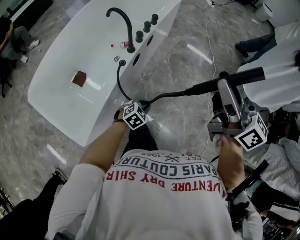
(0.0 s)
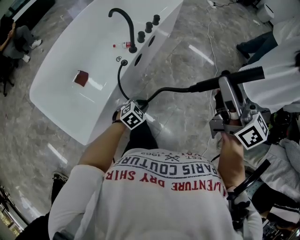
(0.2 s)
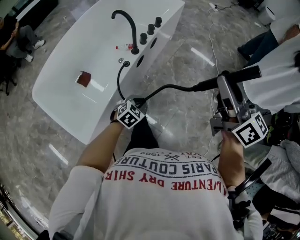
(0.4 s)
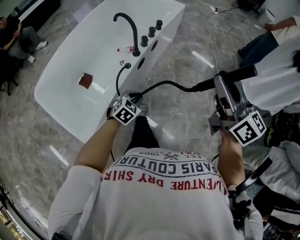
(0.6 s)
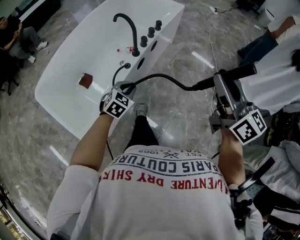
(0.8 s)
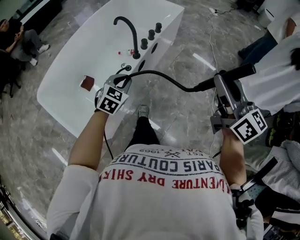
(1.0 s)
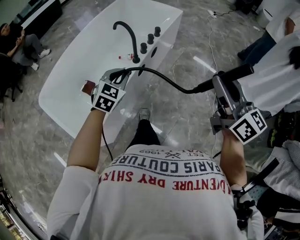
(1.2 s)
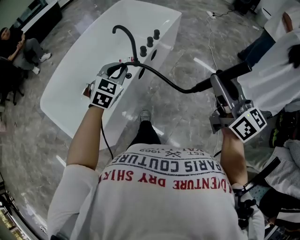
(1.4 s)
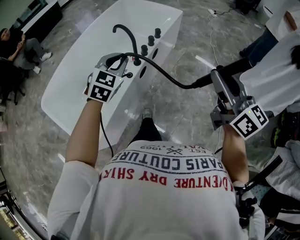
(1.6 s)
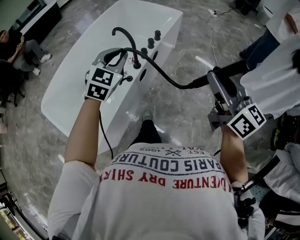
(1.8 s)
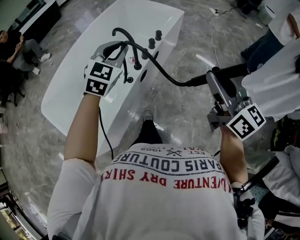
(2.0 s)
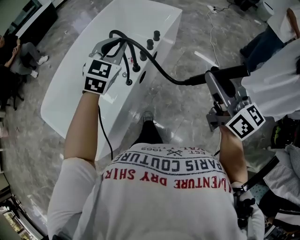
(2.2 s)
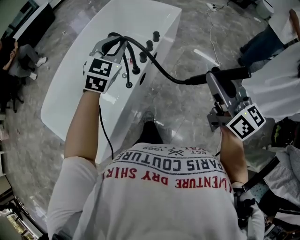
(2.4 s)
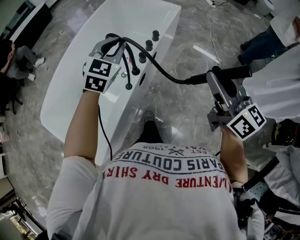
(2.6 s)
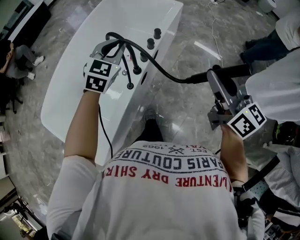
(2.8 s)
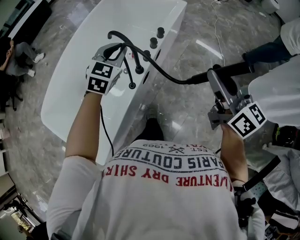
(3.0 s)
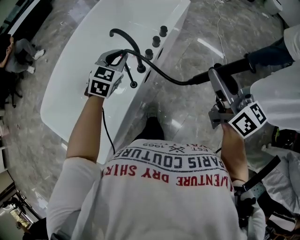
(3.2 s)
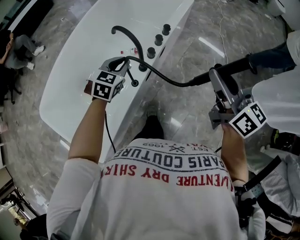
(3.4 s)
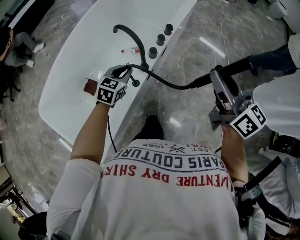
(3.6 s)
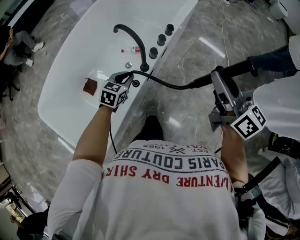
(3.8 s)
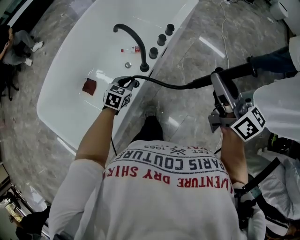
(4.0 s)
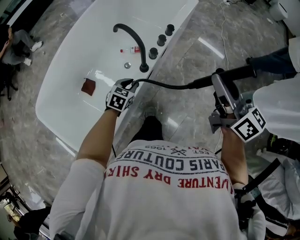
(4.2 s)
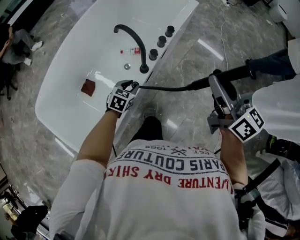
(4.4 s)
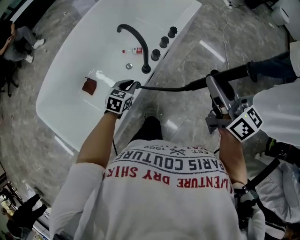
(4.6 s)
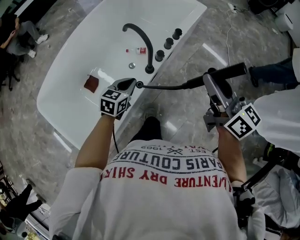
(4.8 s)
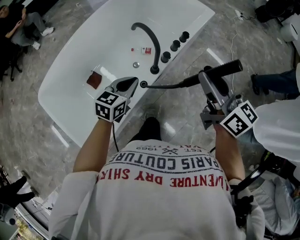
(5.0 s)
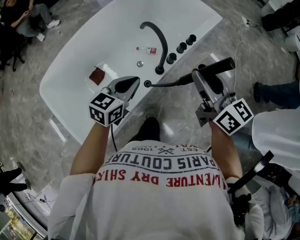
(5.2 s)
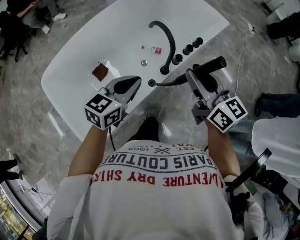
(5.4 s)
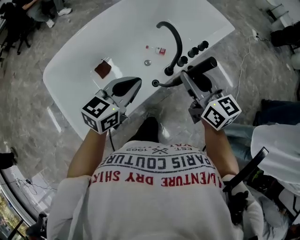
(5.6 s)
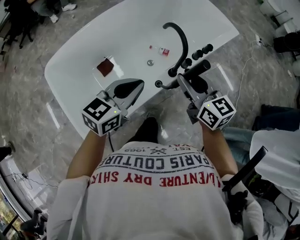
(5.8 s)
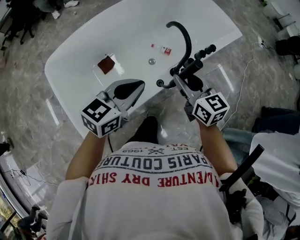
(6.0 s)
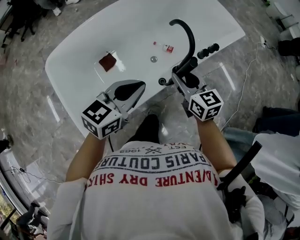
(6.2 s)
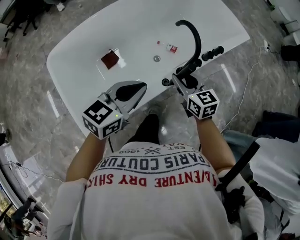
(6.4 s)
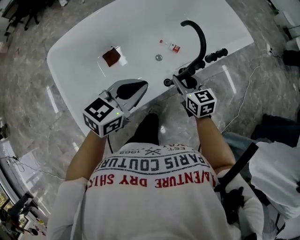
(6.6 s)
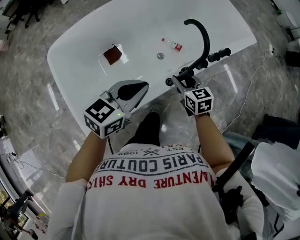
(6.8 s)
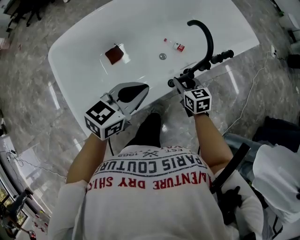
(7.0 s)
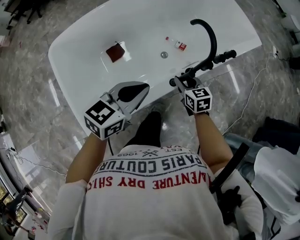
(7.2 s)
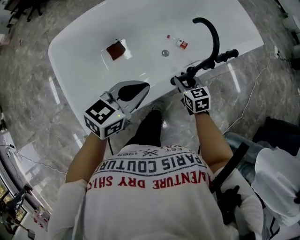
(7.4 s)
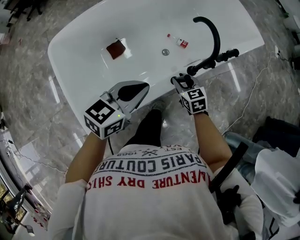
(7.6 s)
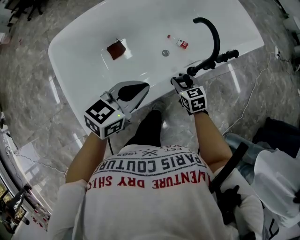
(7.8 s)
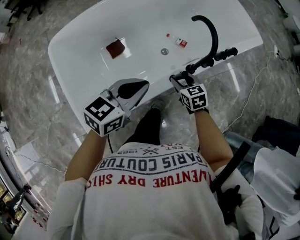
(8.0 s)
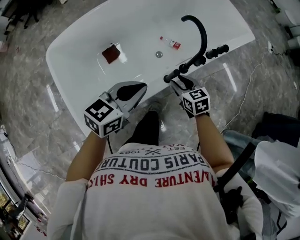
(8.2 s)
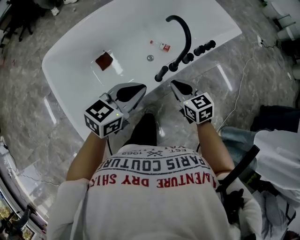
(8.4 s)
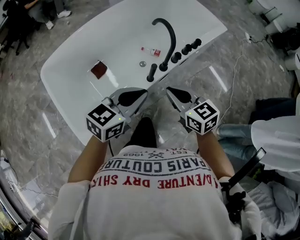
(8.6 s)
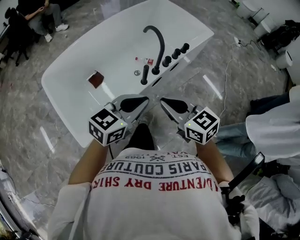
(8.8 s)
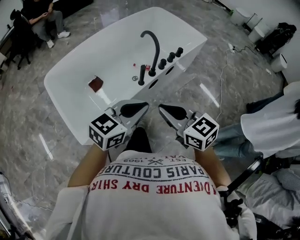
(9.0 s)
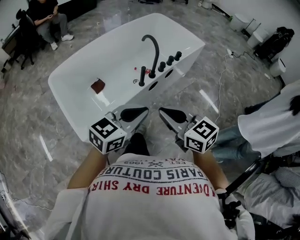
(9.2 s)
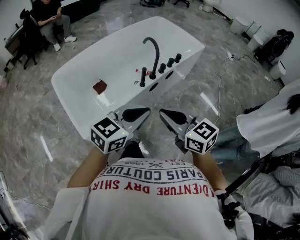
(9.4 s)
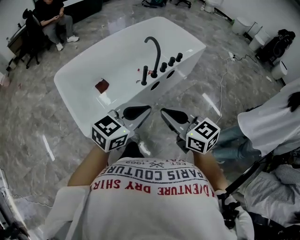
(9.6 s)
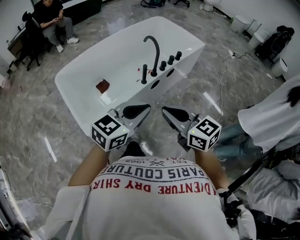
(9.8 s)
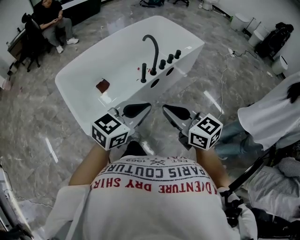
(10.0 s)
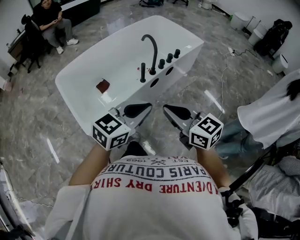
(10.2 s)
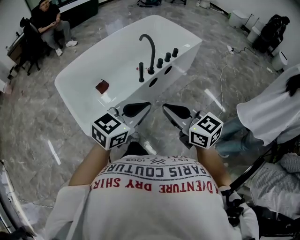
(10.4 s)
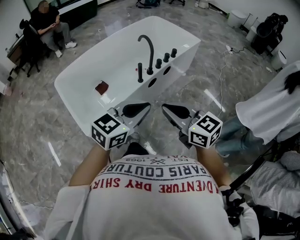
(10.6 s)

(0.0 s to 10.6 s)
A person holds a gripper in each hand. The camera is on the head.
0.0 s - 1.6 s: The left gripper goes some 35 cm upward, forward and to the left, and swivels roughly 40 degrees.
1.6 s - 3.0 s: Both grippers move forward, approximately 15 cm.
3.0 s - 4.6 s: The right gripper goes some 5 cm to the left, while the left gripper moves downward and backward, about 25 cm, and swivels about 30 degrees.
4.6 s - 6.0 s: The left gripper shifts some 25 cm upward and to the left, and turns by roughly 30 degrees, while the right gripper shifts about 25 cm to the left and downward, and turns by some 30 degrees.
6.0 s - 7.6 s: The left gripper travels downward by roughly 5 cm; the right gripper shifts about 25 cm downward, and turns by roughly 30 degrees.
7.6 s - 9.0 s: The right gripper heads upward and backward, covering roughly 40 cm, turns by about 30 degrees, and closes up. Meanwhile the left gripper moves backward, to the right and upward, approximately 25 cm, and rotates some 20 degrees.
9.0 s - 10.6 s: The two grippers go some 10 cm backward and upward.

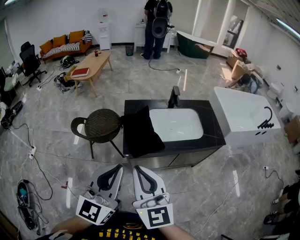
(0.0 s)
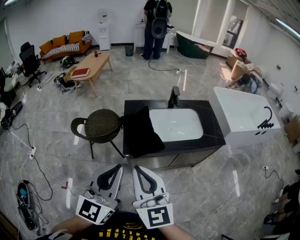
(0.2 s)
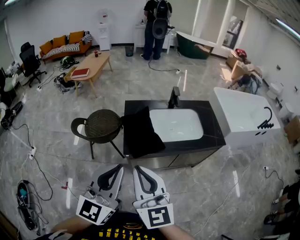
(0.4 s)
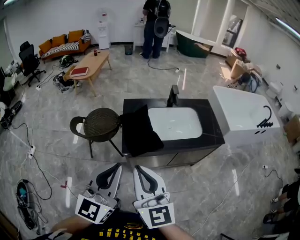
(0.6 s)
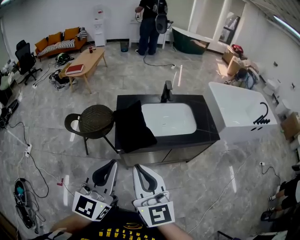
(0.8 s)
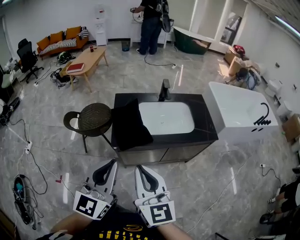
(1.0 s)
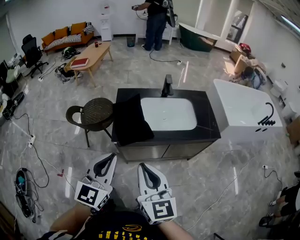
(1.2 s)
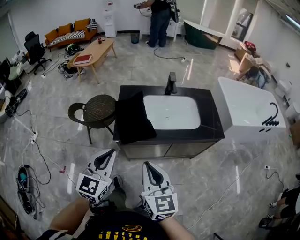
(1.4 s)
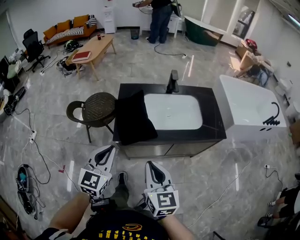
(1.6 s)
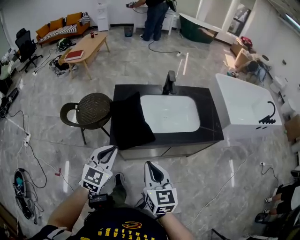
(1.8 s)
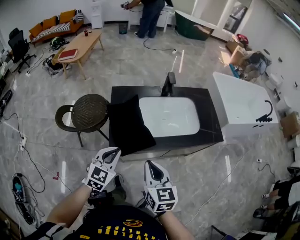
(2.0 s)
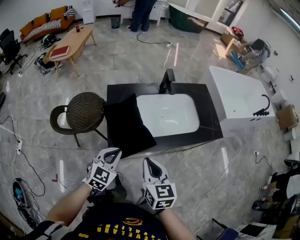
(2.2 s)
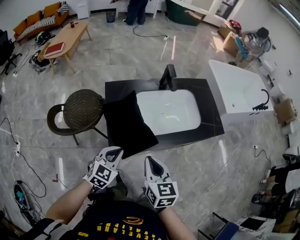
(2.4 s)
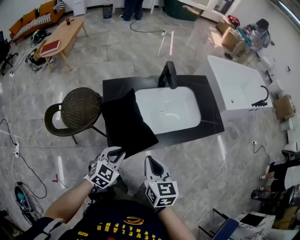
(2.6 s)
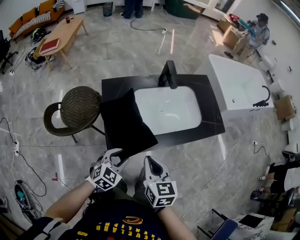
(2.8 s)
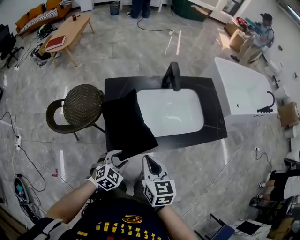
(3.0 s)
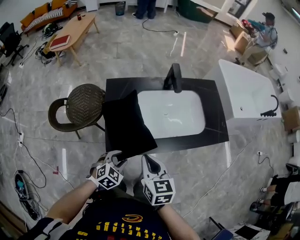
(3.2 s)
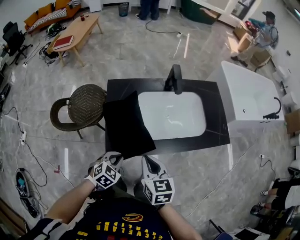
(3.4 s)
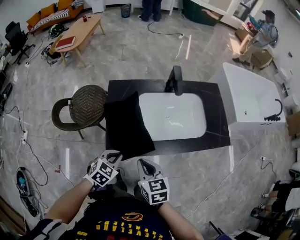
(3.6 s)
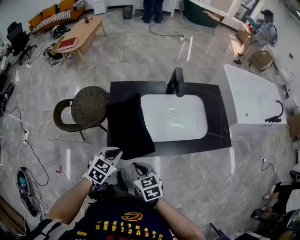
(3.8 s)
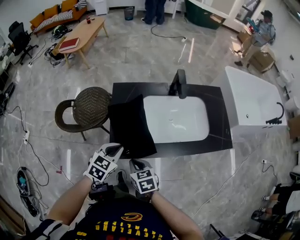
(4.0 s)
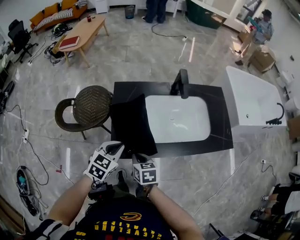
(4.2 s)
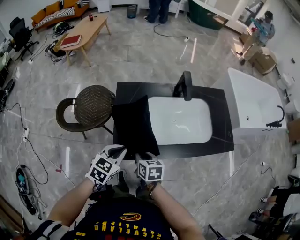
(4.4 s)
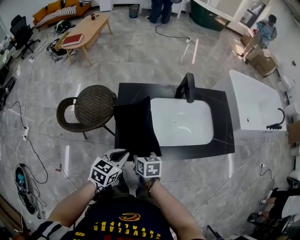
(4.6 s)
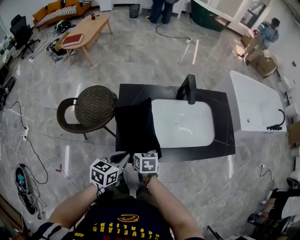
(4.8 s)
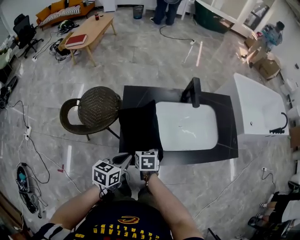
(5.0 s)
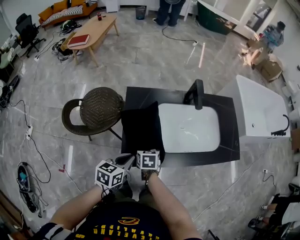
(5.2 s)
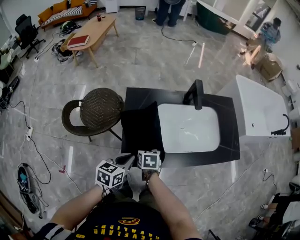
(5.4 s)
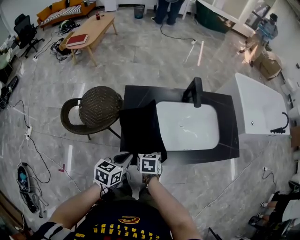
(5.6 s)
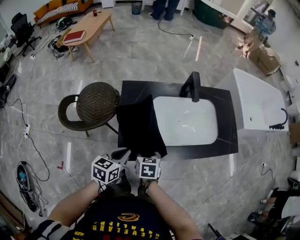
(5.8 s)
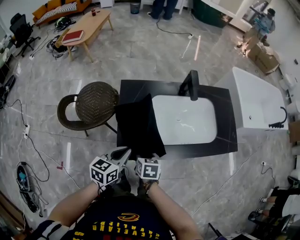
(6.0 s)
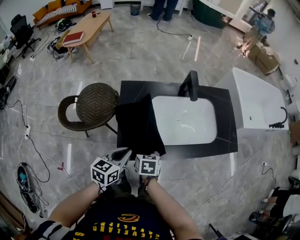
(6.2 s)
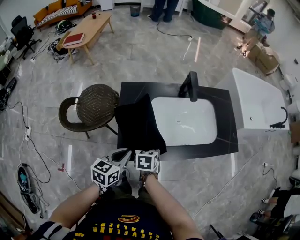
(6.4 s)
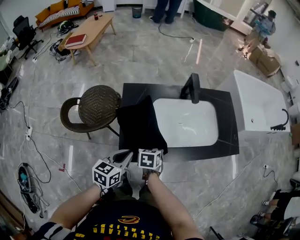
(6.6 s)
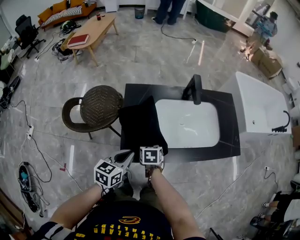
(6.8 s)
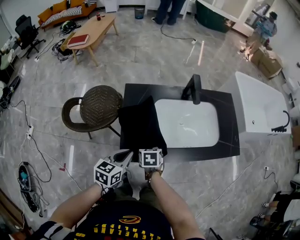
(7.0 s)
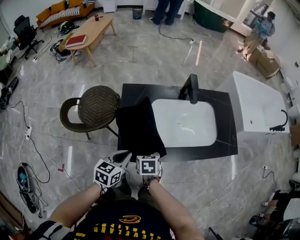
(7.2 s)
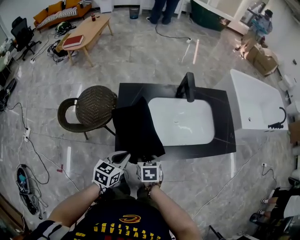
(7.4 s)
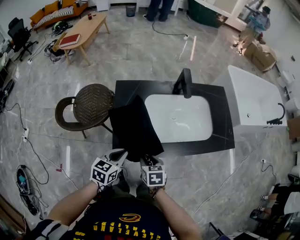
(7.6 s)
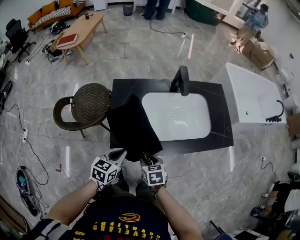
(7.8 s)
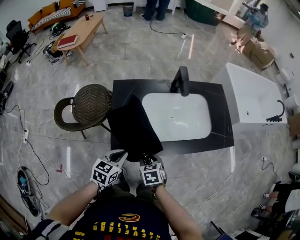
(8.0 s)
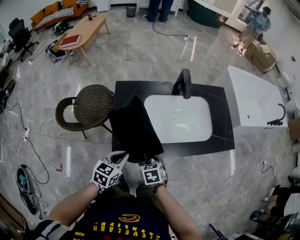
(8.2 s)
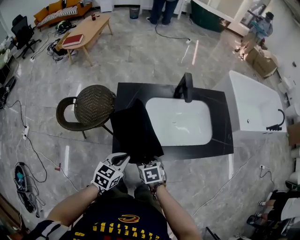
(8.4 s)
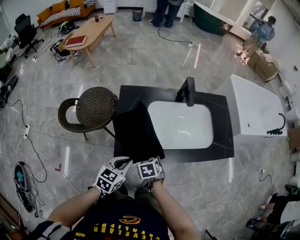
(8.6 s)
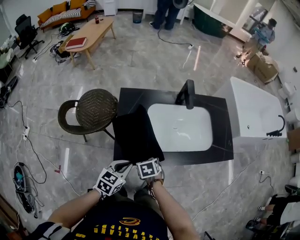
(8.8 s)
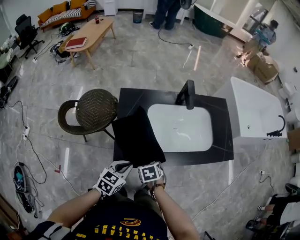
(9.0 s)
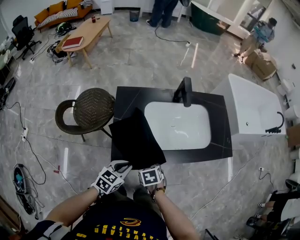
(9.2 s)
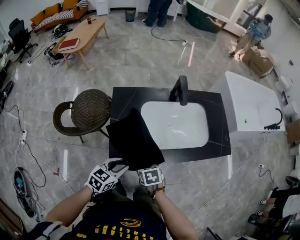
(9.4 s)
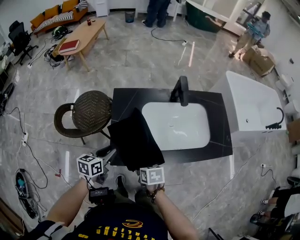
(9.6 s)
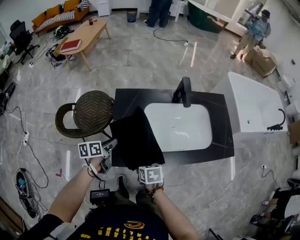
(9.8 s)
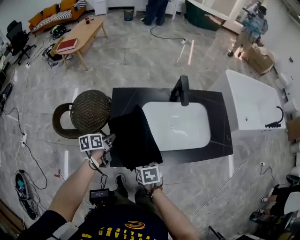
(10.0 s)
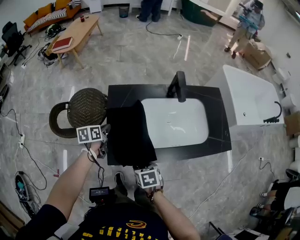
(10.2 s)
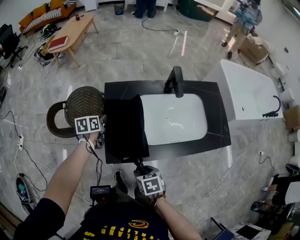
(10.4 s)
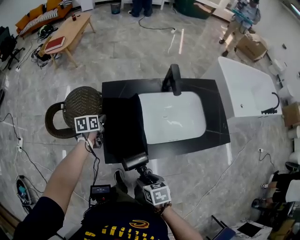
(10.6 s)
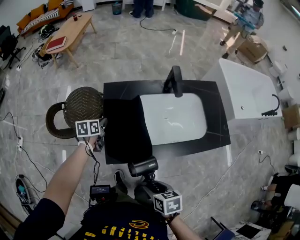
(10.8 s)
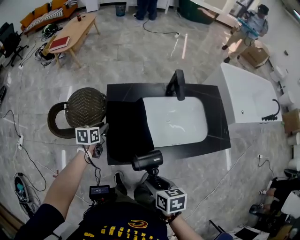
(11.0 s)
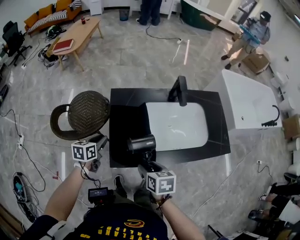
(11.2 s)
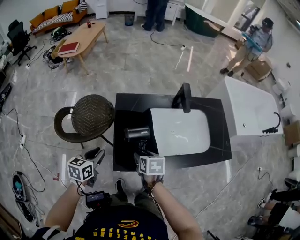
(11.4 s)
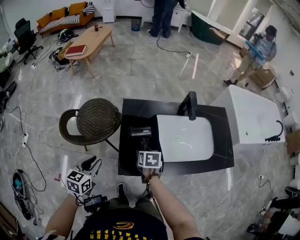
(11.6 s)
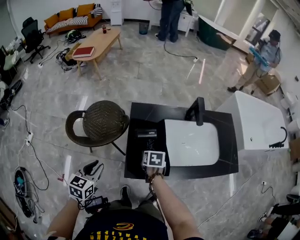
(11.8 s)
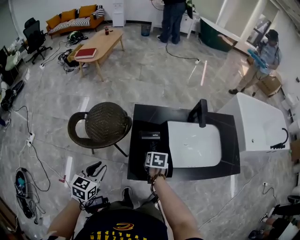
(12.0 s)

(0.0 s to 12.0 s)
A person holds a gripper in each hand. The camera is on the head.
0.0 s - 1.6 s: The left gripper heads downward and forward, covering roughly 15 cm, and swivels approximately 20 degrees. Meanwhile the right gripper heads downward and to the right, covering about 20 cm.
1.6 s - 3.0 s: The left gripper goes roughly 25 cm downward and forward, points its fingers about 30 degrees further downward, and opens its fingers, while the right gripper travels forward, downward and to the left by about 20 cm.
3.0 s - 4.4 s: The left gripper goes approximately 10 cm upward and forward, swivels about 20 degrees, and closes, while the right gripper is displaced downward and to the left by about 15 cm, and swivels about 20 degrees.
4.4 s - 6.0 s: The left gripper turns by roughly 20 degrees. The right gripper opens up.
6.0 s - 7.6 s: The right gripper goes approximately 5 cm to the right.
7.6 s - 9.0 s: The grippers stay close to where they were, moving slightly.
9.0 s - 10.4 s: The right gripper travels backward by about 5 cm, while the left gripper heads forward and to the left, covering about 25 cm, rotates roughly 40 degrees, and opens, then closes once more.
10.4 s - 12.0 s: The left gripper is displaced backward, to the left and upward by some 25 cm, swivels roughly 30 degrees, and opens up. The right gripper travels forward by some 20 cm.

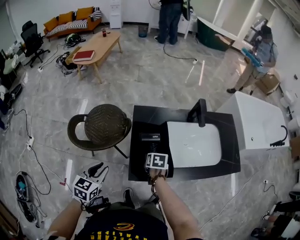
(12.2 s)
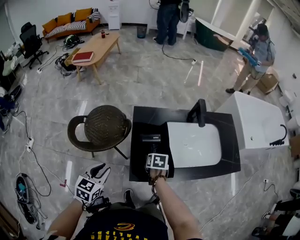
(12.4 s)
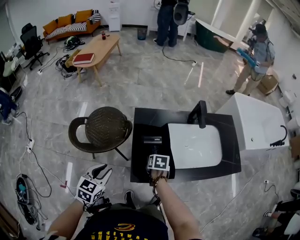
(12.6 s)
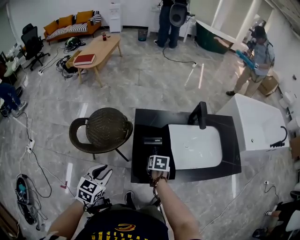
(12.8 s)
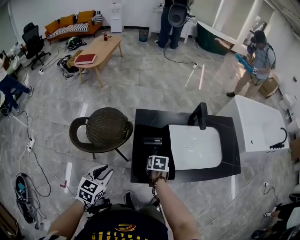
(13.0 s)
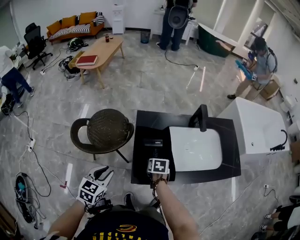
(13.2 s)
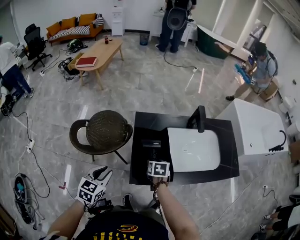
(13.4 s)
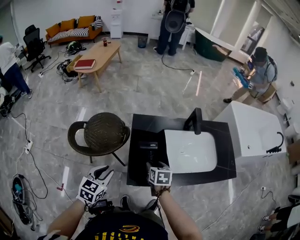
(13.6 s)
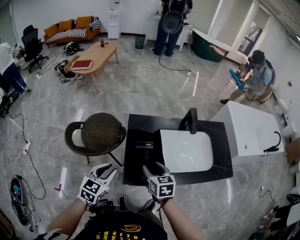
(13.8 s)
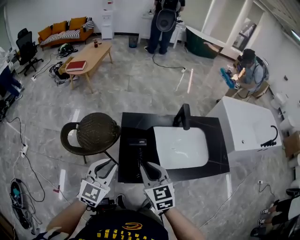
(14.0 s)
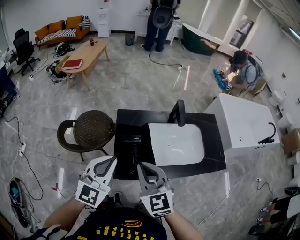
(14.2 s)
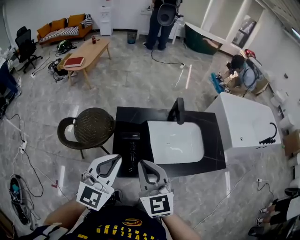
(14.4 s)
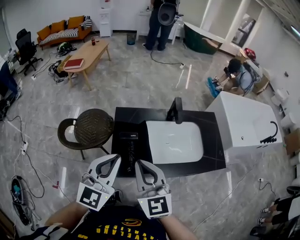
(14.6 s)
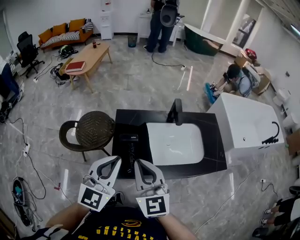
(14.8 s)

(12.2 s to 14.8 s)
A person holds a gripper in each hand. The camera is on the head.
12.2 s - 13.4 s: The grippers move only a little.
13.4 s - 14.8 s: The right gripper moves upward, about 35 cm, tips its fingers upward by approximately 50 degrees, and closes its fingers, while the left gripper shifts approximately 30 cm upward and to the right, rotates some 30 degrees, and closes up.
